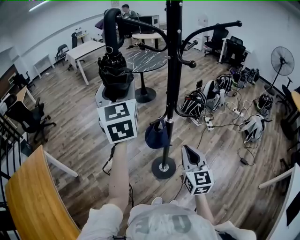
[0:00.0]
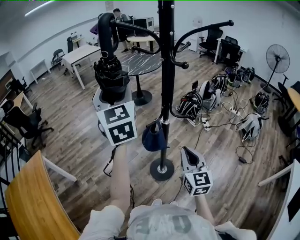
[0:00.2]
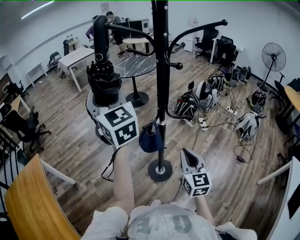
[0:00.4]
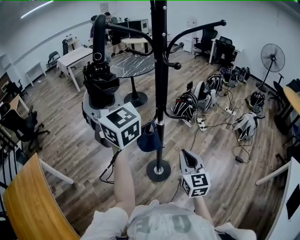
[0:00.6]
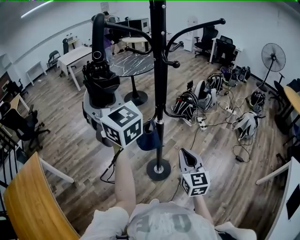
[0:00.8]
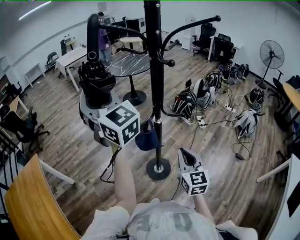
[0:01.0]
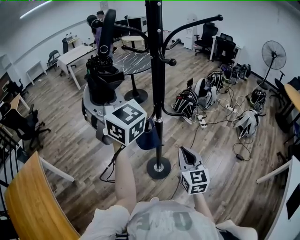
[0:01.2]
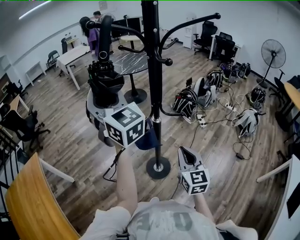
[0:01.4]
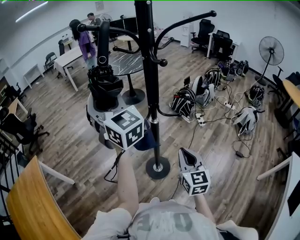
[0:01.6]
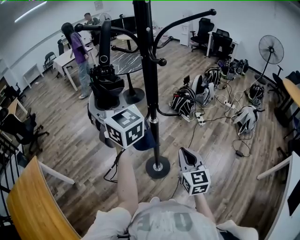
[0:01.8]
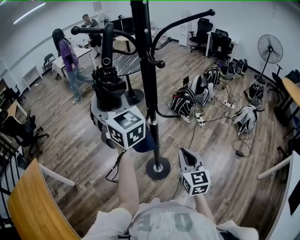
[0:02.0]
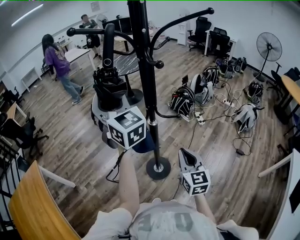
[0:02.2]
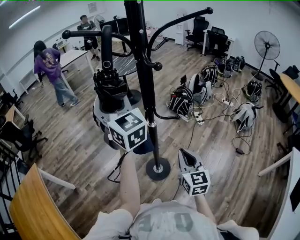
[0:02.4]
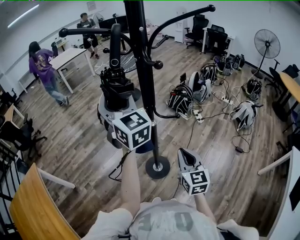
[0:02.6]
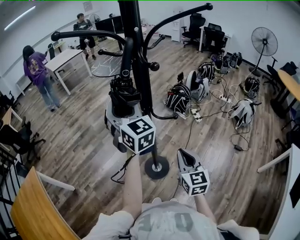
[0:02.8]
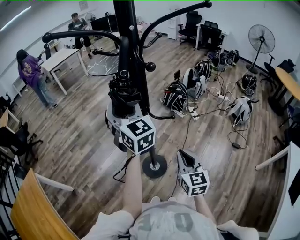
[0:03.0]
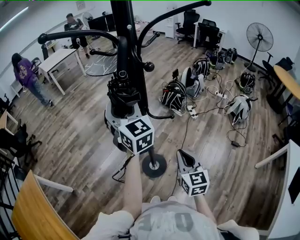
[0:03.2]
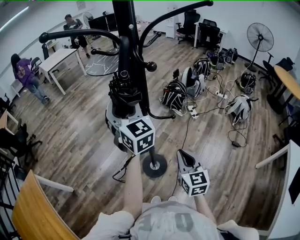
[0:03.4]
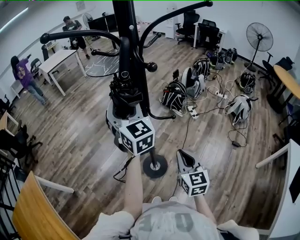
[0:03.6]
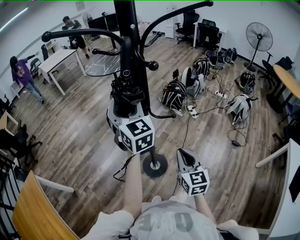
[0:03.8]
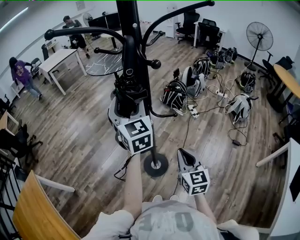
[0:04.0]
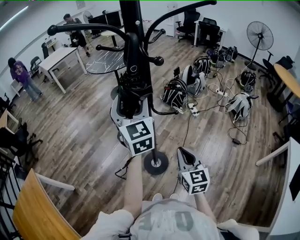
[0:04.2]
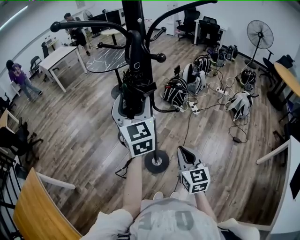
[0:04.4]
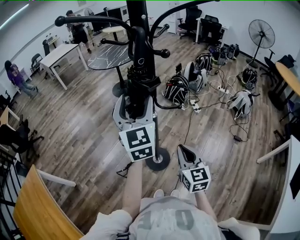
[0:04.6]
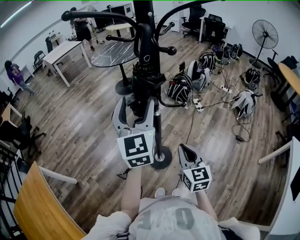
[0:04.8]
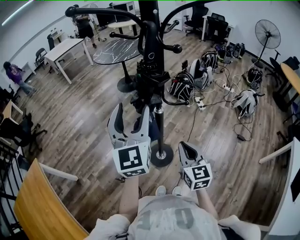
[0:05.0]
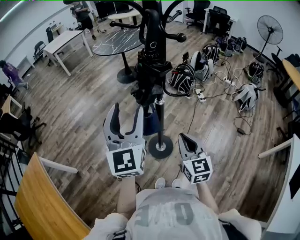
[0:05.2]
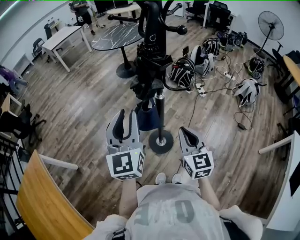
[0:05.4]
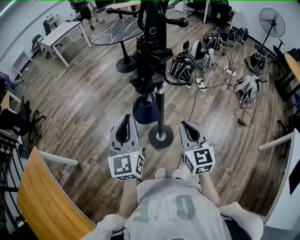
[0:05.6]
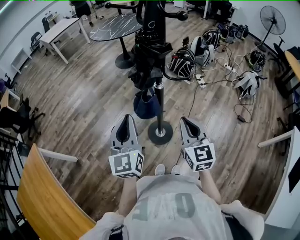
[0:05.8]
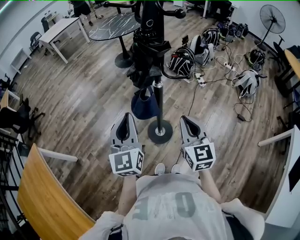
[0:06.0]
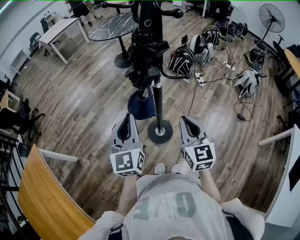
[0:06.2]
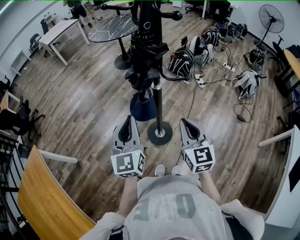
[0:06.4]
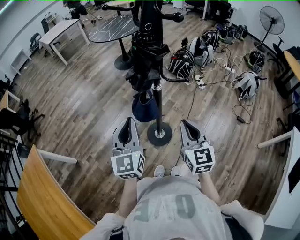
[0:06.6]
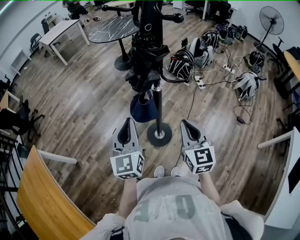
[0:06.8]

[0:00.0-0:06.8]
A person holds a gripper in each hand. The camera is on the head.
0:00.0 to 0:01.4: The left gripper turns by approximately 20 degrees.
0:01.4 to 0:02.8: The right gripper shifts by about 5 cm, while the left gripper shifts approximately 15 cm to the right, downward and forward.
0:02.8 to 0:04.0: The grippers move only a little.
0:04.0 to 0:05.4: The right gripper moves to the left, approximately 5 cm; the left gripper travels backward and to the left by roughly 15 cm, and closes its fingers.
0:05.4 to 0:06.8: The left gripper moves downward, about 10 cm.

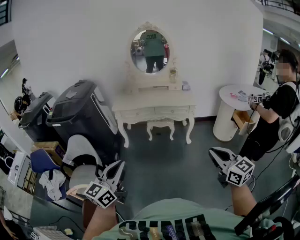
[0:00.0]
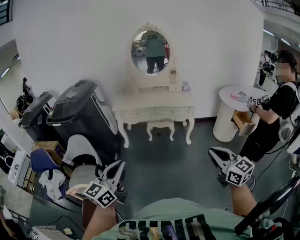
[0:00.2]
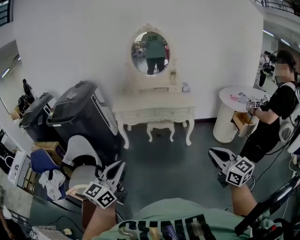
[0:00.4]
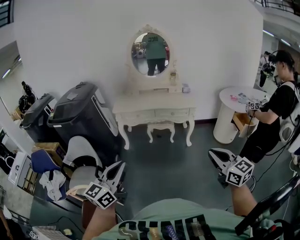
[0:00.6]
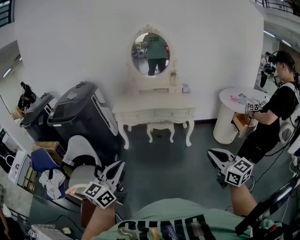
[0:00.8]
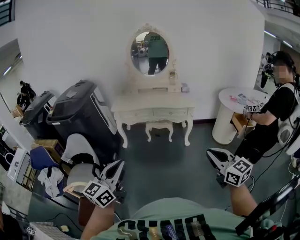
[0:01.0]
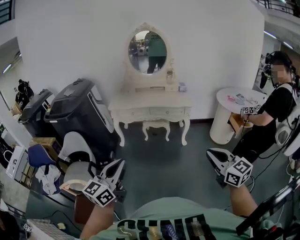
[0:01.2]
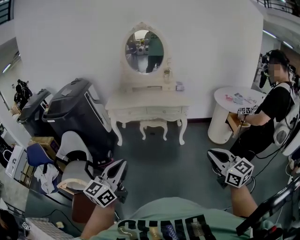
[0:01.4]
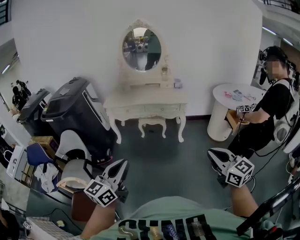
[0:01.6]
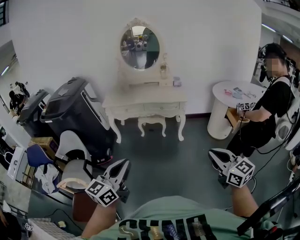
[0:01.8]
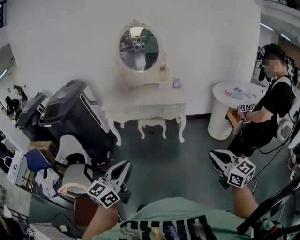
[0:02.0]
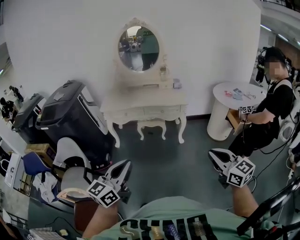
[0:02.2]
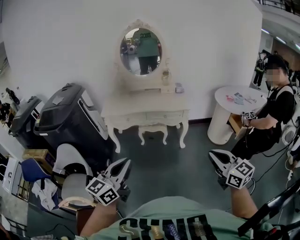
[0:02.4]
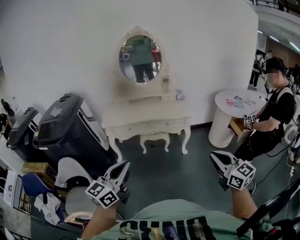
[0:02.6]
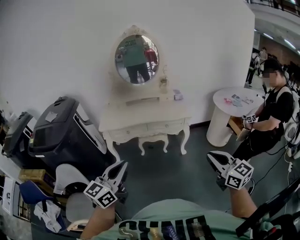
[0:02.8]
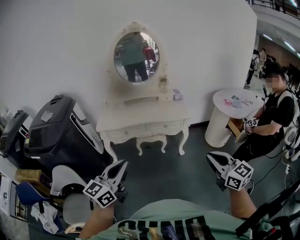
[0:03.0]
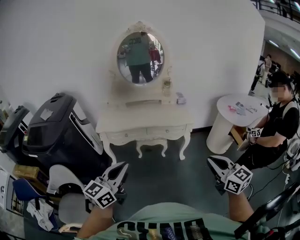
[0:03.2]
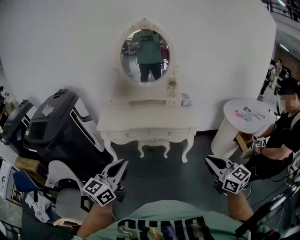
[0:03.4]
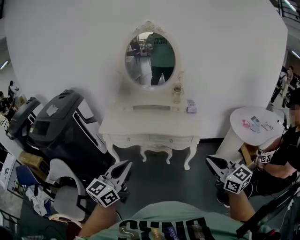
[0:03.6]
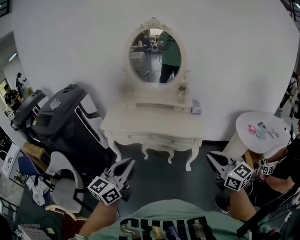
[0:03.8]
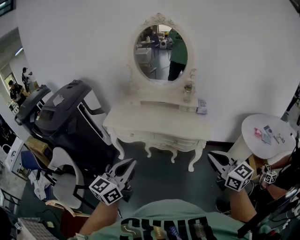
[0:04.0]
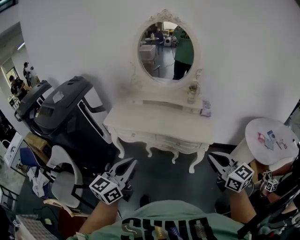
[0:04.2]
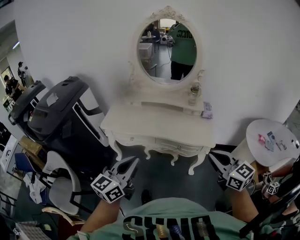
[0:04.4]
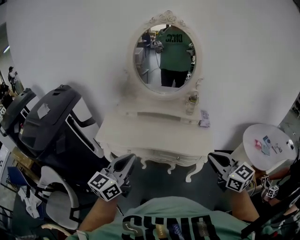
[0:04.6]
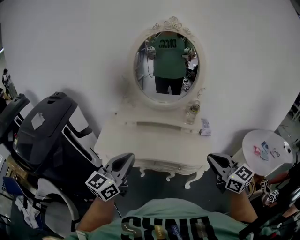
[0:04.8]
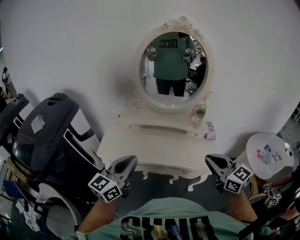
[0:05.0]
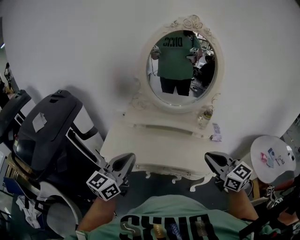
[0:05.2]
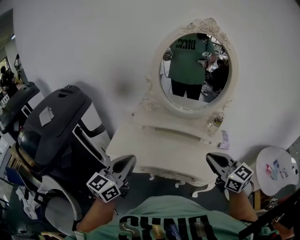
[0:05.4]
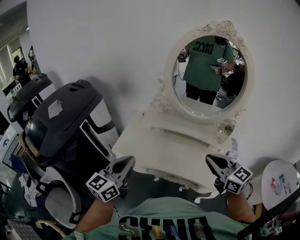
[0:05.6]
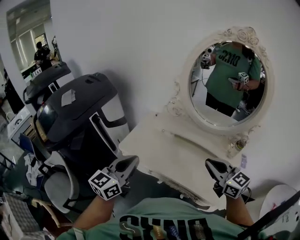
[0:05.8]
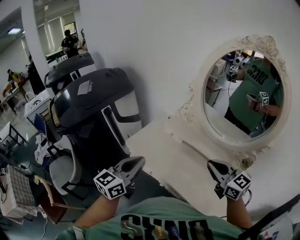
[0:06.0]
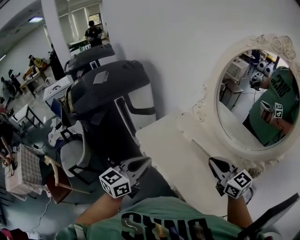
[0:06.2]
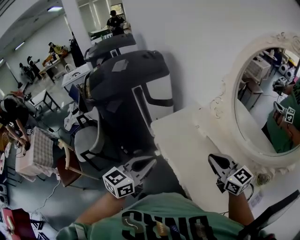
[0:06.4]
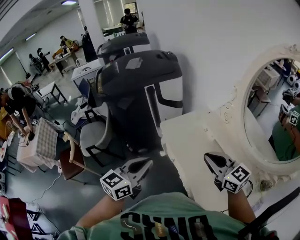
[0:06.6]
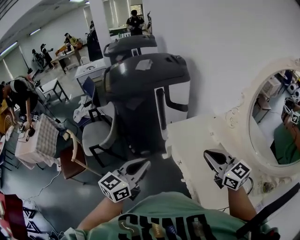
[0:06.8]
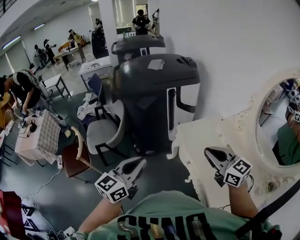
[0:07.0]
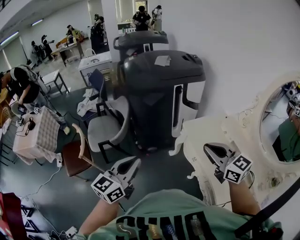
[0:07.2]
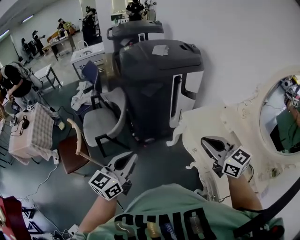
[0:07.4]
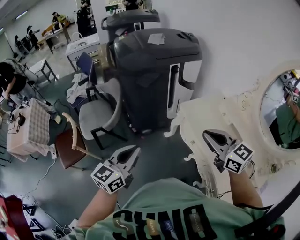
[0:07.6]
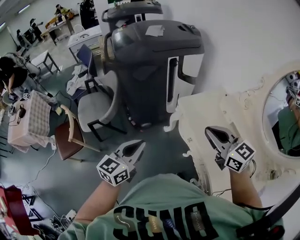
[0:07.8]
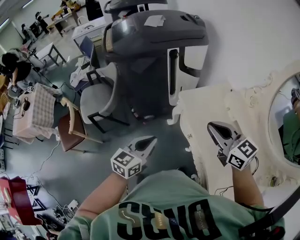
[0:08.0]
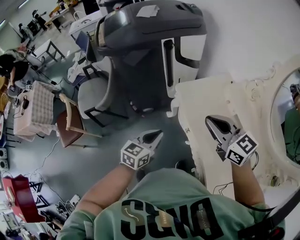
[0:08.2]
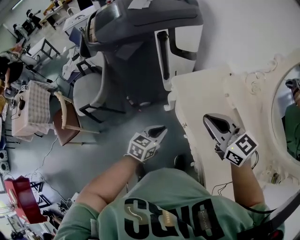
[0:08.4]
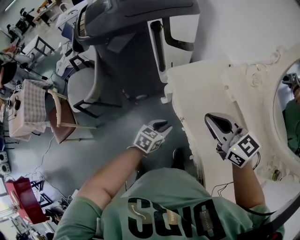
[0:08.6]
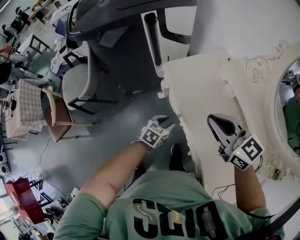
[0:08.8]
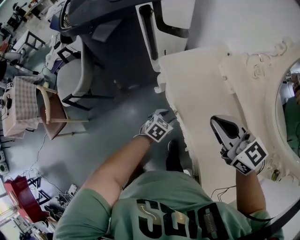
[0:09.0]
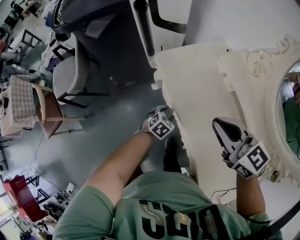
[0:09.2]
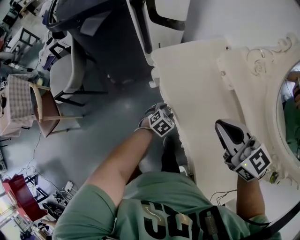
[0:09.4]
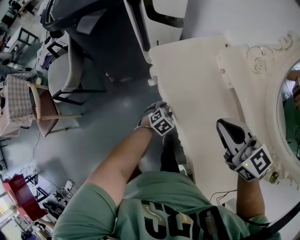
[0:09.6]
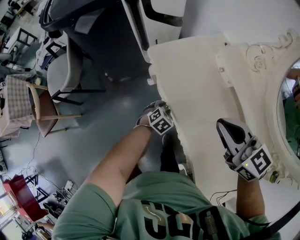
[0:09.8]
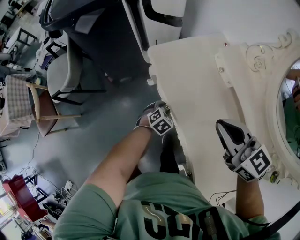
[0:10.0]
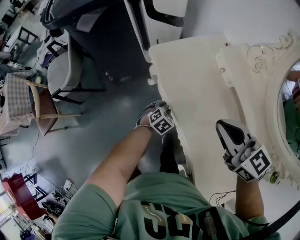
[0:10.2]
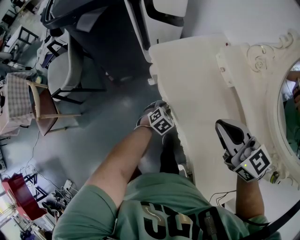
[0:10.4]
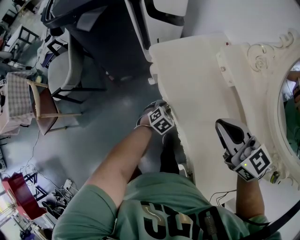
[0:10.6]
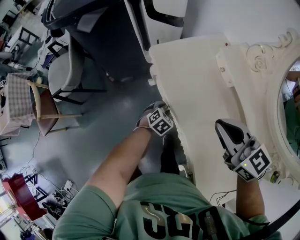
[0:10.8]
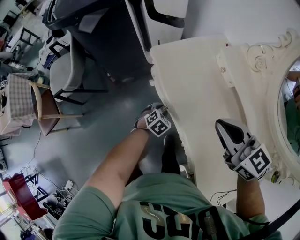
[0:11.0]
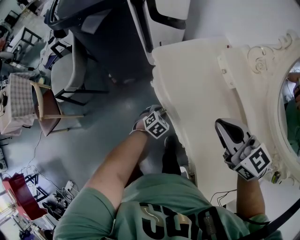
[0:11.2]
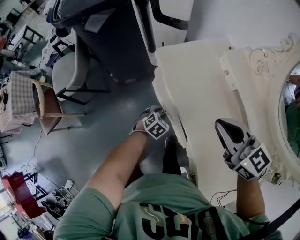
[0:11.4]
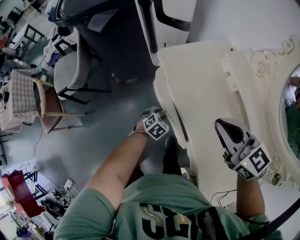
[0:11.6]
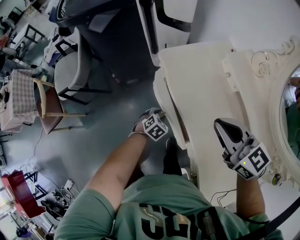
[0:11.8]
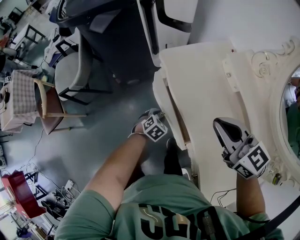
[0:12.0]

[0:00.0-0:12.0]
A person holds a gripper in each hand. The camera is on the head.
0:00.0 to 0:01.6: The two grippers go roughly 15 cm to the right.
0:01.6 to 0:03.0: Both grippers travel together forward and to the left, about 30 cm.
0:03.0 to 0:04.4: The left gripper goes about 30 cm forward and to the right; the right gripper moves forward, some 35 cm, and turns by approximately 20 degrees.
0:04.4 to 0:06.0: The left gripper changes place by roughly 30 cm, and swivels about 30 degrees, while the right gripper moves roughly 40 cm, and turns by roughly 30 degrees.
0:06.0 to 0:07.6: The right gripper moves about 30 cm, and swivels roughly 30 degrees; the left gripper moves some 35 cm, and swivels about 30 degrees.
0:07.6 to 0:09.0: The left gripper moves downward and to the right, approximately 50 cm, points its fingers some 40 degrees further downward, and opens. The right gripper heads to the right and downward, covering some 20 cm.
0:09.0 to 0:10.4: The right gripper moves some 5 cm, while the left gripper goes some 5 cm downward.
0:10.4 to 0:12.0: The left gripper heads to the left, covering approximately 5 cm.

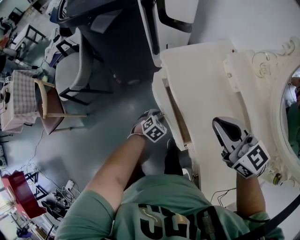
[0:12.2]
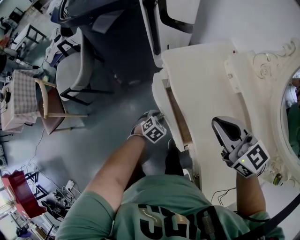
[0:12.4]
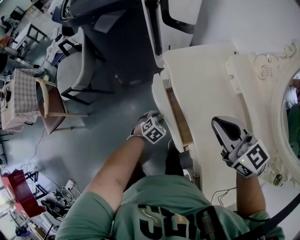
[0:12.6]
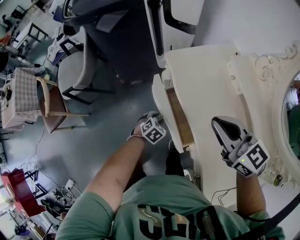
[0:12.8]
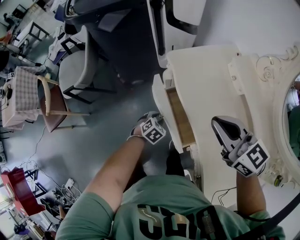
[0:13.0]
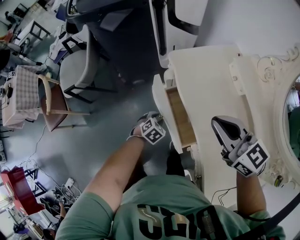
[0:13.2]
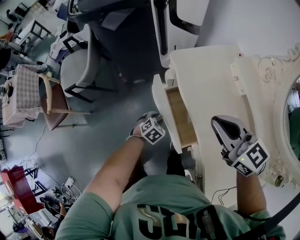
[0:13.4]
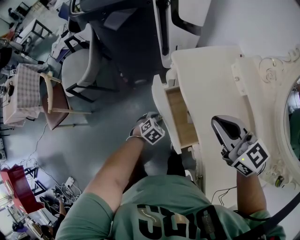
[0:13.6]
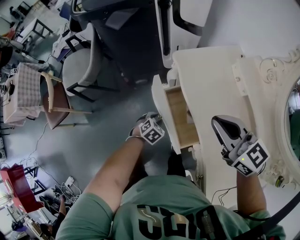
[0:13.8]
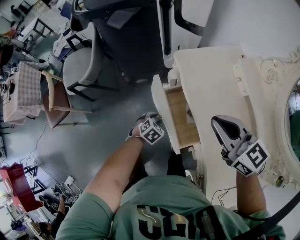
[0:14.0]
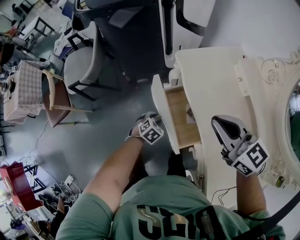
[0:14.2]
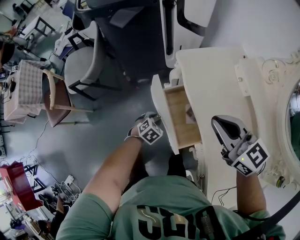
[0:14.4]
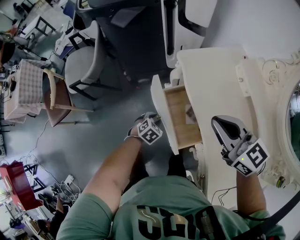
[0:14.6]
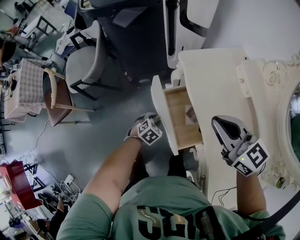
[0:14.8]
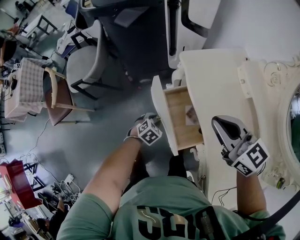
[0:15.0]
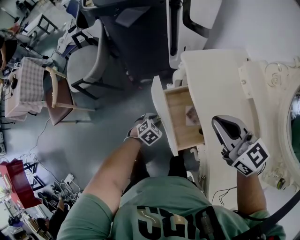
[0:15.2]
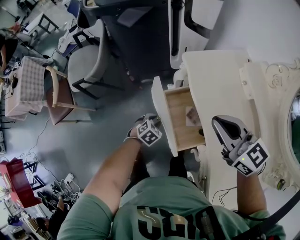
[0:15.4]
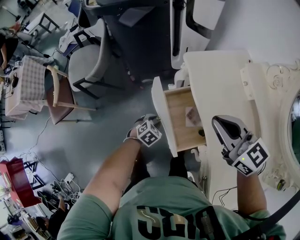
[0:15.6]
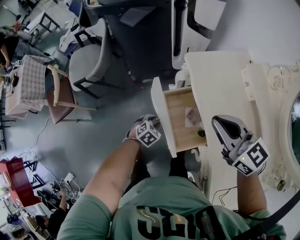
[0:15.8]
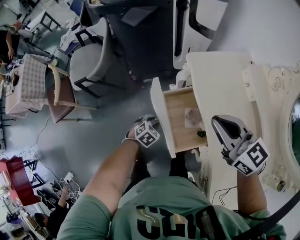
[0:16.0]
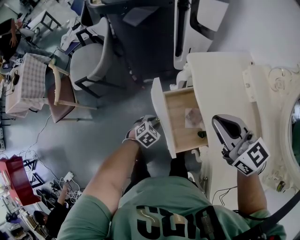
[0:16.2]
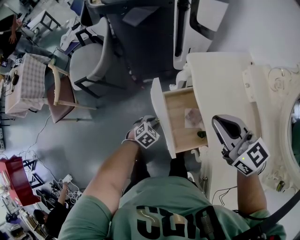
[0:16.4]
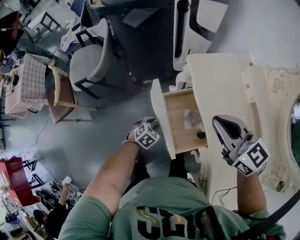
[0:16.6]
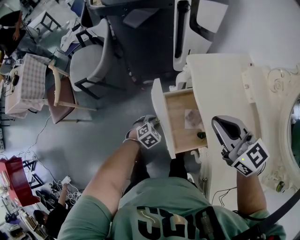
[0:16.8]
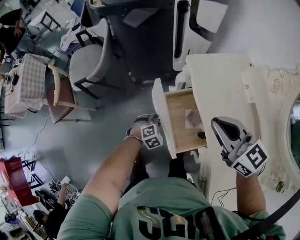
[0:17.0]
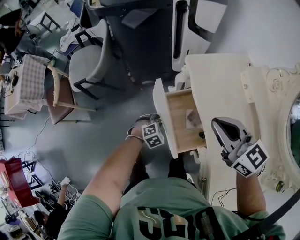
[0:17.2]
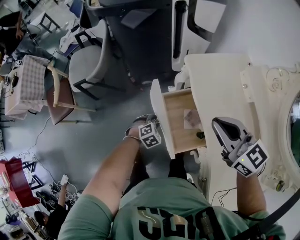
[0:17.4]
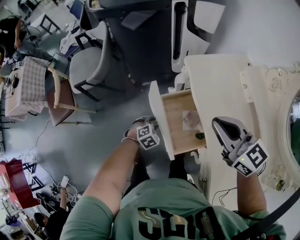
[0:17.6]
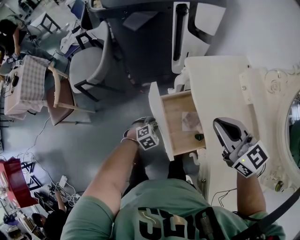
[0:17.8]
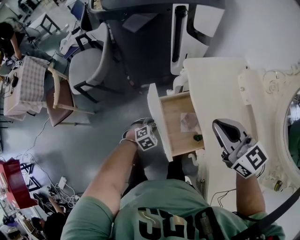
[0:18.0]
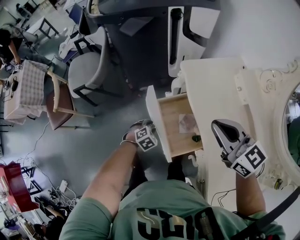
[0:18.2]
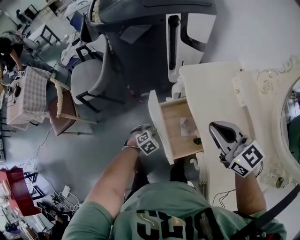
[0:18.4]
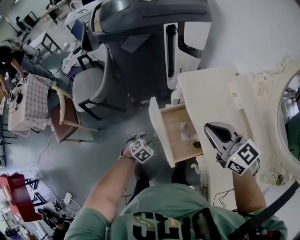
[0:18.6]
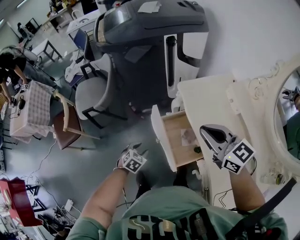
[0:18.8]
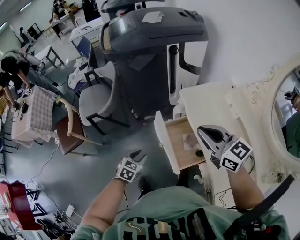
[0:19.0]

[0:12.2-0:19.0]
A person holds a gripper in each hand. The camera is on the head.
0:12.2 to 0:13.6: The left gripper goes some 5 cm to the left.
0:13.6 to 0:15.0: There are only small adjustments of the grippers.
0:15.0 to 0:16.2: There are only small adjustments of the grippers.
0:17.6 to 0:19.0: The right gripper moves upward and to the left, some 10 cm. Meanwhile the left gripper moves upward and to the left, some 20 cm, and turns by some 30 degrees.
